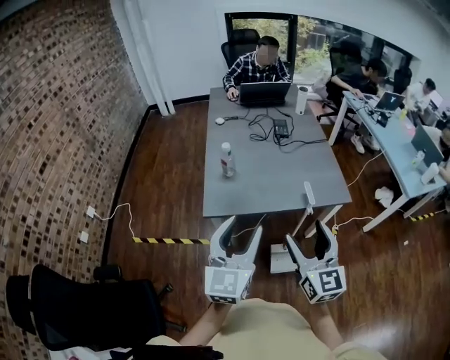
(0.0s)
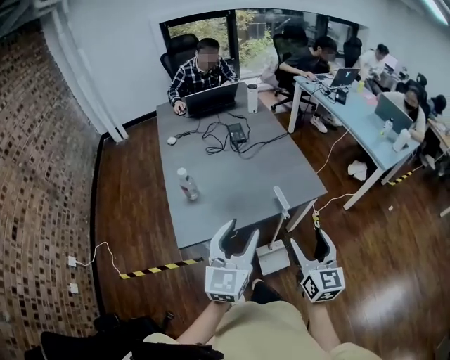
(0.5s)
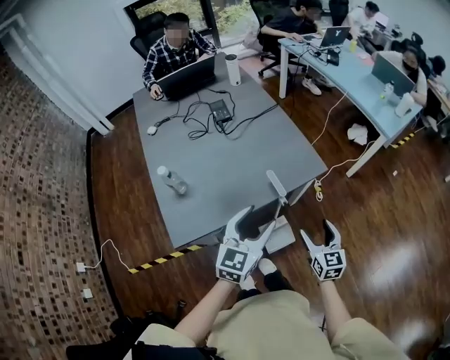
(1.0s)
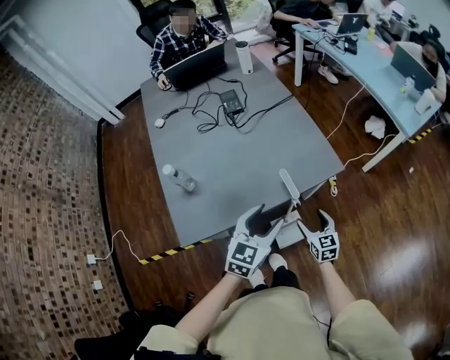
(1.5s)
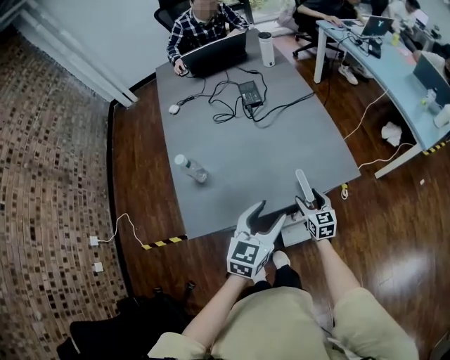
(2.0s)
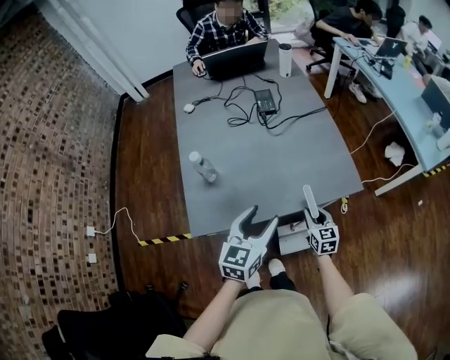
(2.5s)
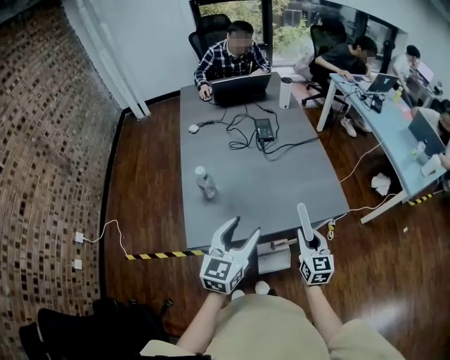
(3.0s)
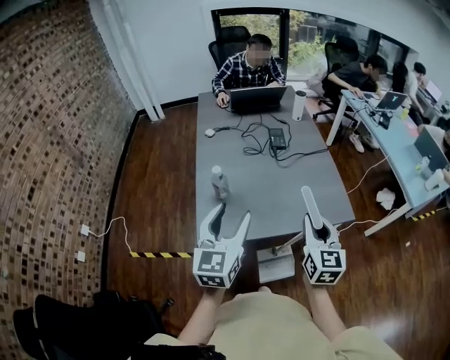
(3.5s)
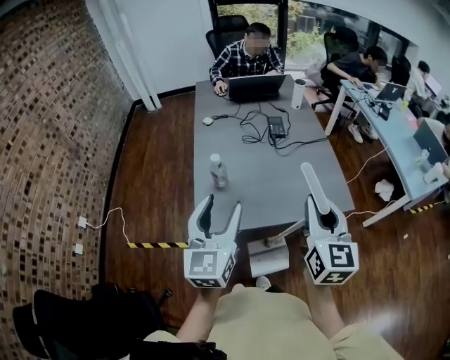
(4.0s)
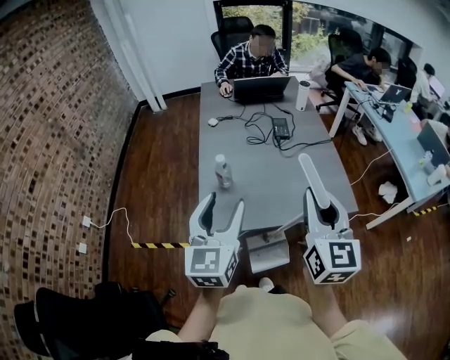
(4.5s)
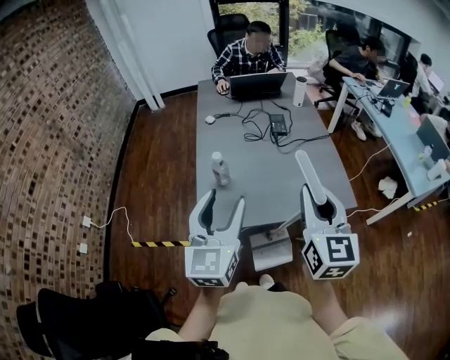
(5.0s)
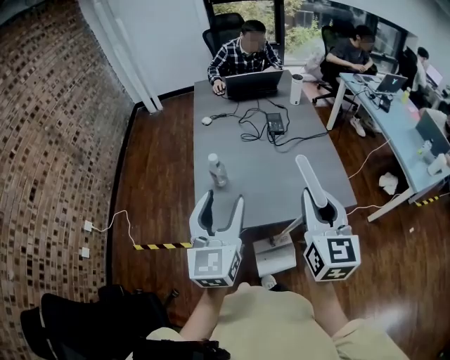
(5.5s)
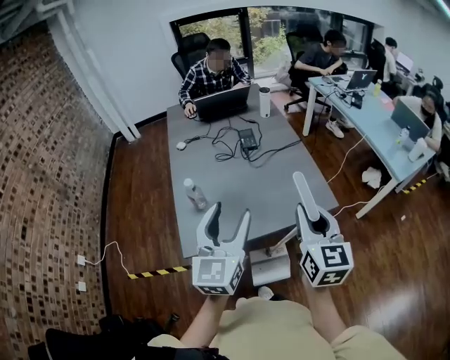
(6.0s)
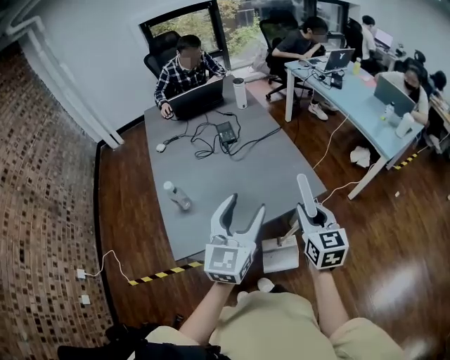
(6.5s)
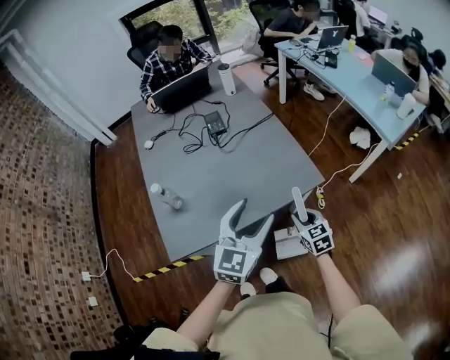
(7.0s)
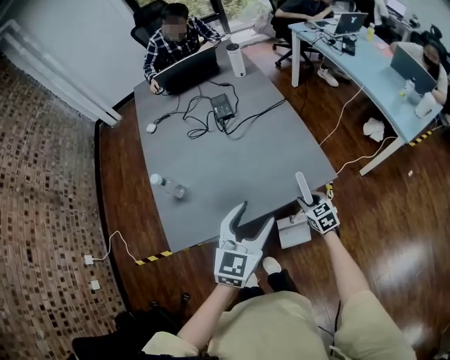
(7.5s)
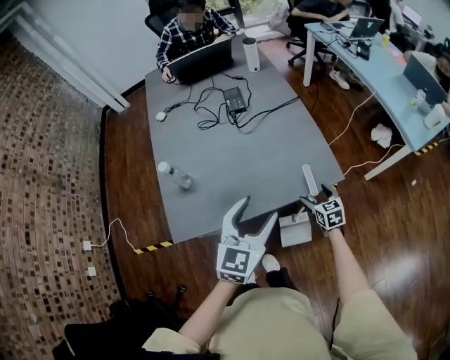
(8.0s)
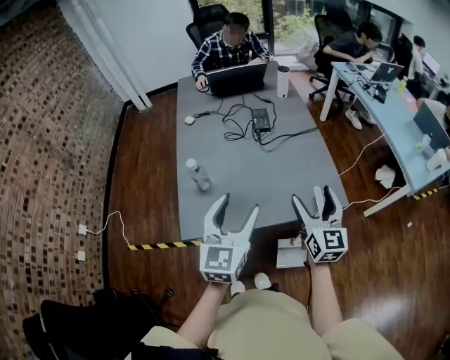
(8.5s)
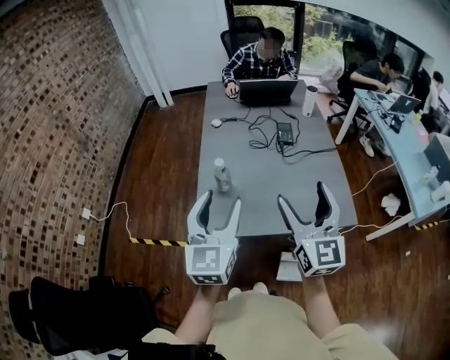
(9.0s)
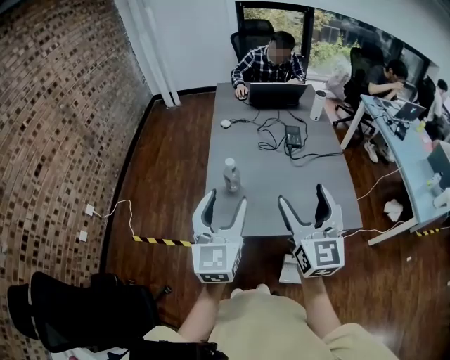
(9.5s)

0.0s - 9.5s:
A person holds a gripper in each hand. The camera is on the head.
0.0s - 2.0s: The left gripper ends up approximately 30 cm from where it was, and swivels about 30 degrees. Meanwhile the right gripper travels downward by approximately 35 cm, and swivels some 30 degrees.
2.0s - 4.0s: The left gripper moves to the left and upward, some 25 cm, and turns by some 40 degrees, while the right gripper is displaced upward by some 40 cm, changes its angle by approximately 20 degrees, and closes.
4.0s - 5.5s: The grippers make only small movements.
5.5s - 7.5s: The left gripper heads to the right and downward, covering some 25 cm, and rotates about 40 degrees. Meanwhile the right gripper goes some 50 cm downward and to the right, and tips its fingers downward by about 40 degrees.
7.5s - 9.5s: The right gripper travels upward and to the left by approximately 50 cm, tilts its fingers roughly 50 degrees upward, and opens; the left gripper is displaced to the left and upward by approximately 30 cm, and changes its angle by some 40 degrees.

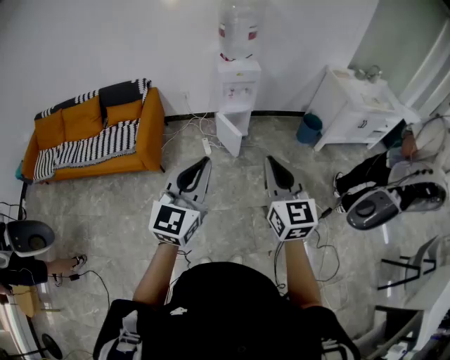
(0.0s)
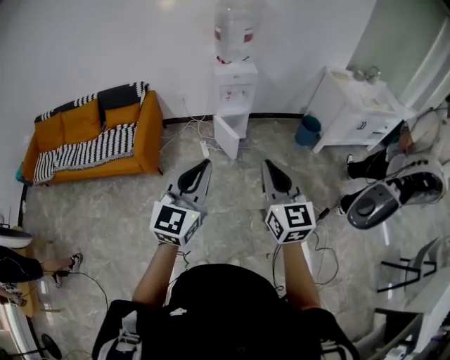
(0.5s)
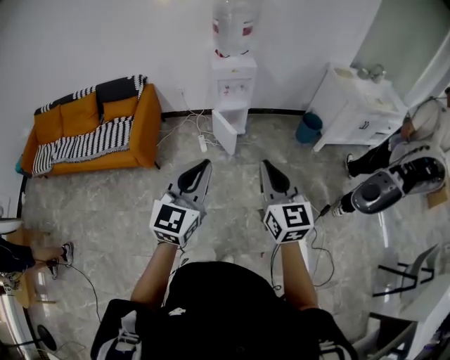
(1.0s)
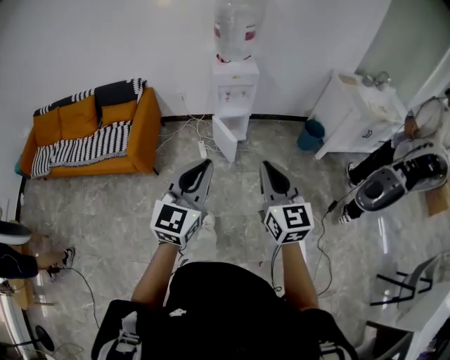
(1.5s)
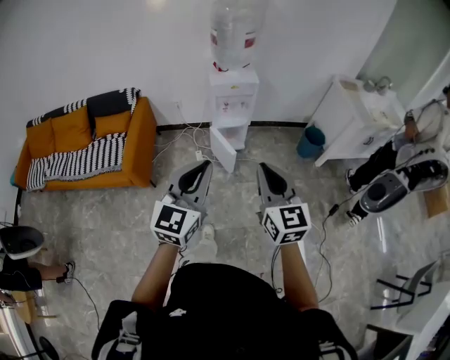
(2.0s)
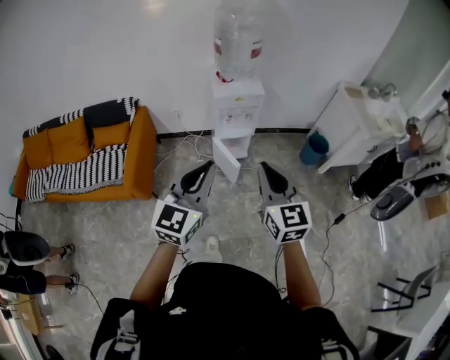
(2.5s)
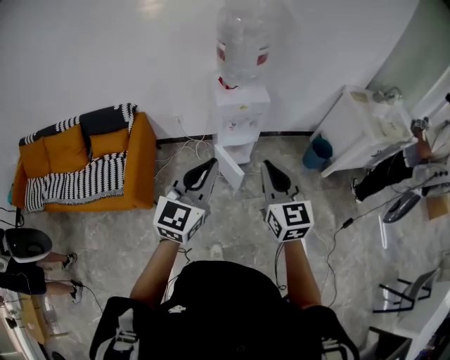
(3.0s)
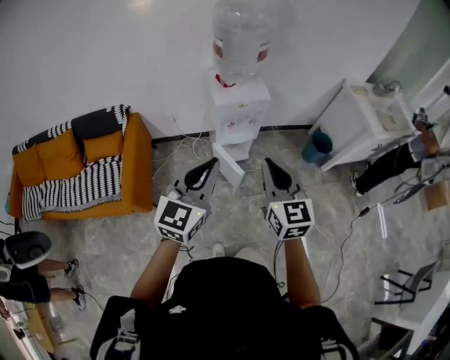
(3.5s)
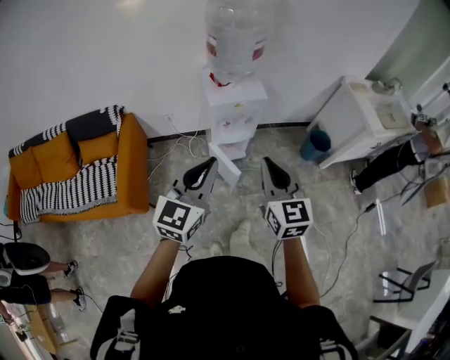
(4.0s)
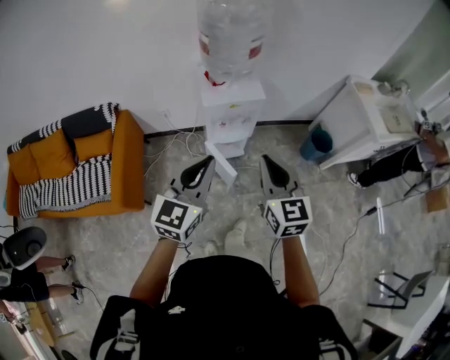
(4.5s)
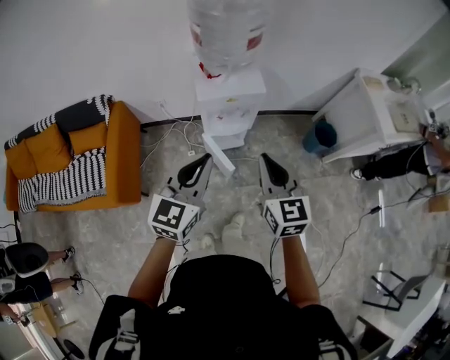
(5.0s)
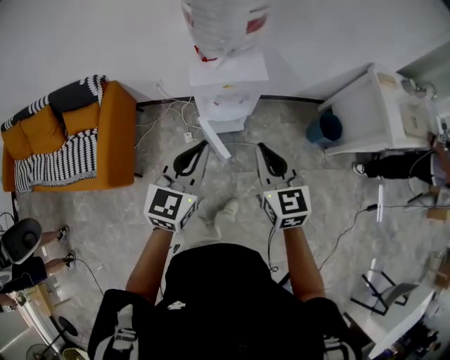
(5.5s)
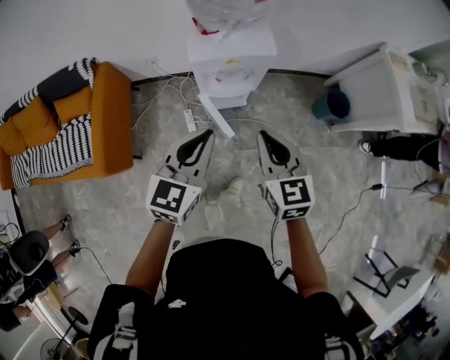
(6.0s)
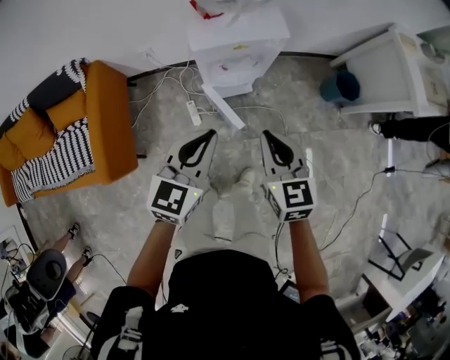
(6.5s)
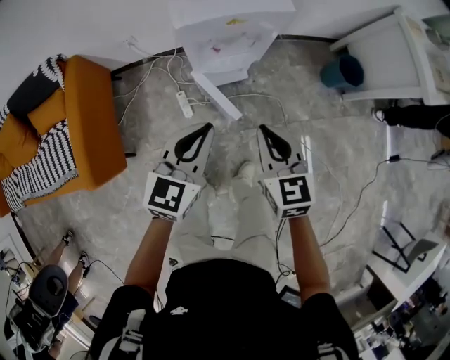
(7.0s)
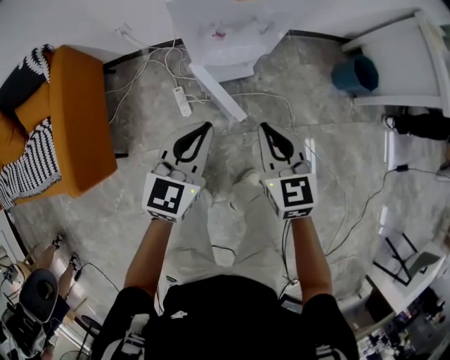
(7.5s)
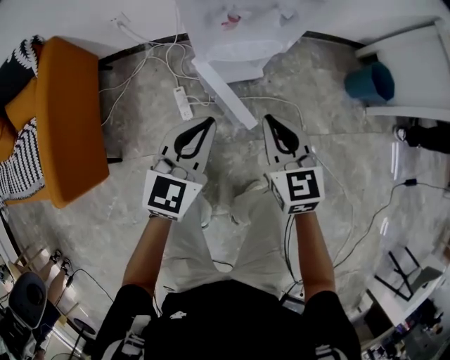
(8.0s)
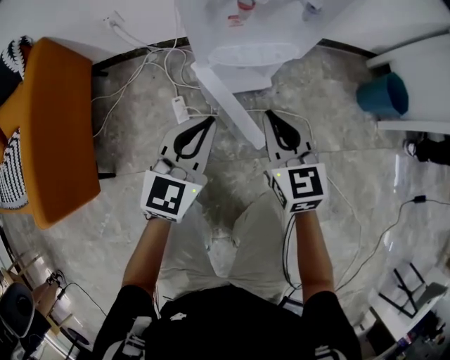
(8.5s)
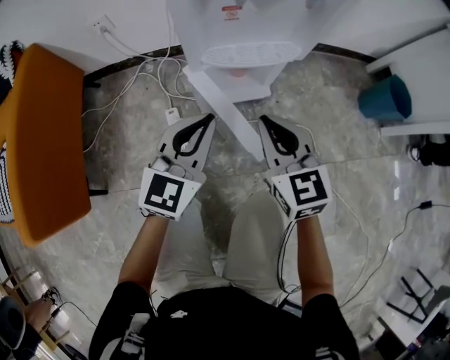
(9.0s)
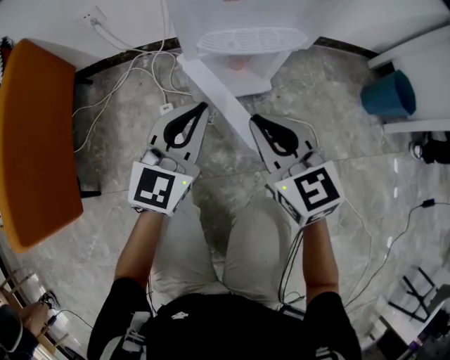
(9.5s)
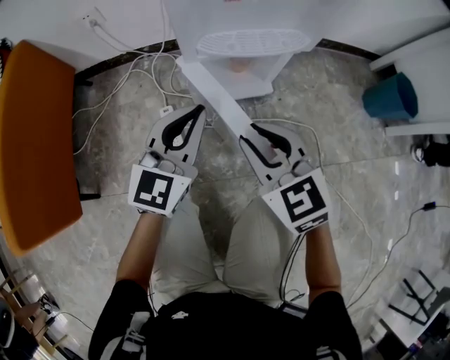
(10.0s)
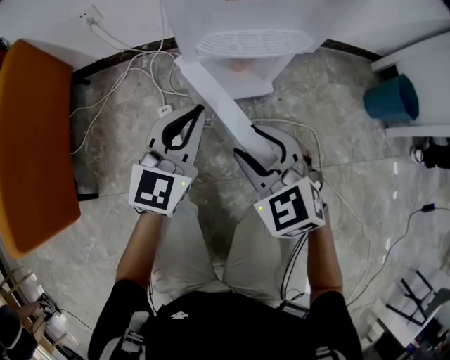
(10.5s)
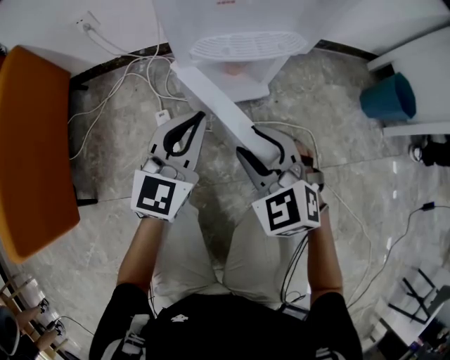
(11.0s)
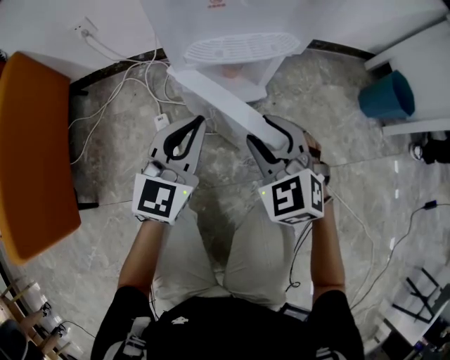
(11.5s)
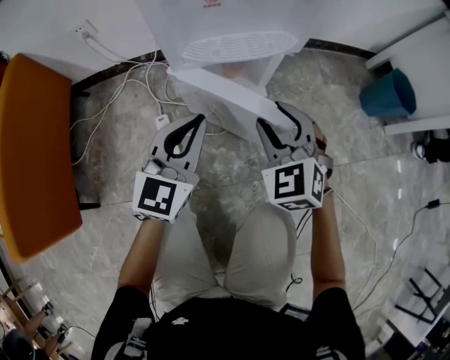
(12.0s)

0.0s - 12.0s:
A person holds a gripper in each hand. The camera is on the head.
0.0s - 2.0s: The two grippers go roughly 20 cm forward.
2.0s - 4.0s: The two grippers go roughly 25 cm forward.
4.0s - 6.0s: The grippers both shift forward and downward by about 20 cm.
6.0s - 8.0s: The two grippers go roughly 35 cm downward.
8.0s - 10.0s: The left gripper shifts some 20 cm downward and forward. Meanwhile the right gripper shifts some 15 cm downward, and rotates some 20 degrees.
10.0s - 12.0s: The right gripper travels to the right and forward by roughly 10 cm, rotates roughly 30 degrees, and opens up.

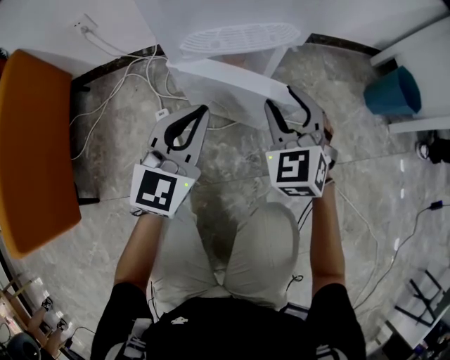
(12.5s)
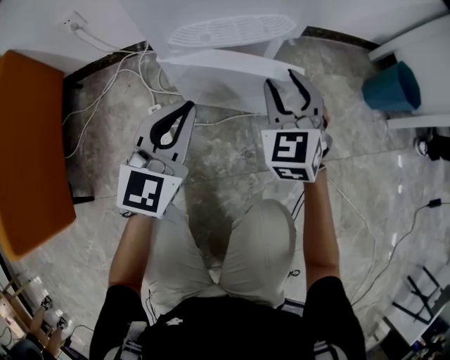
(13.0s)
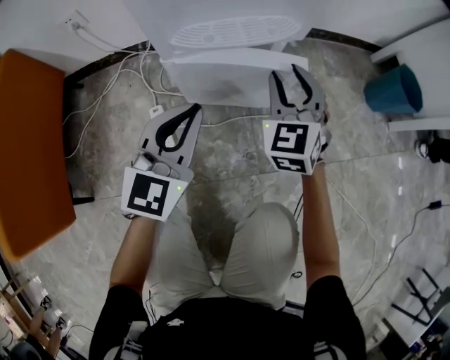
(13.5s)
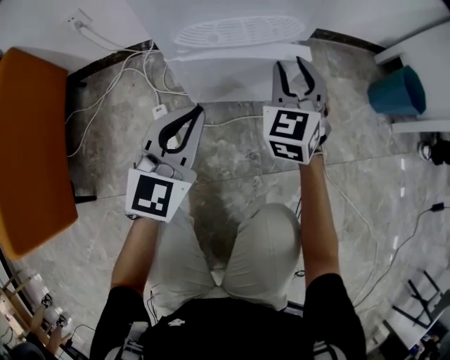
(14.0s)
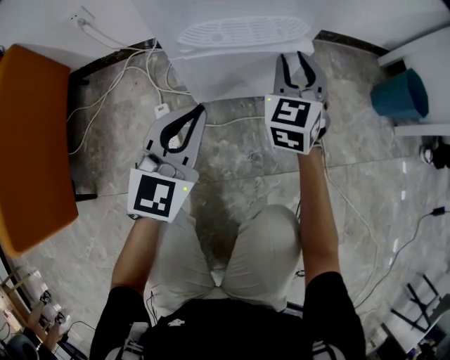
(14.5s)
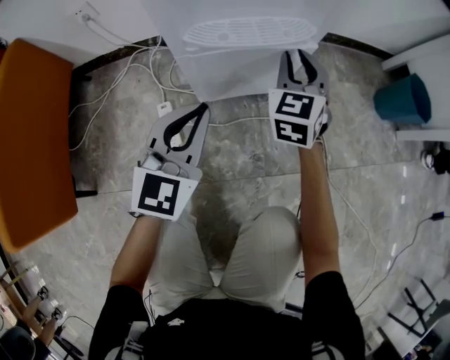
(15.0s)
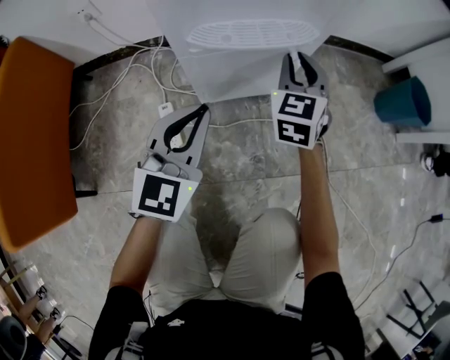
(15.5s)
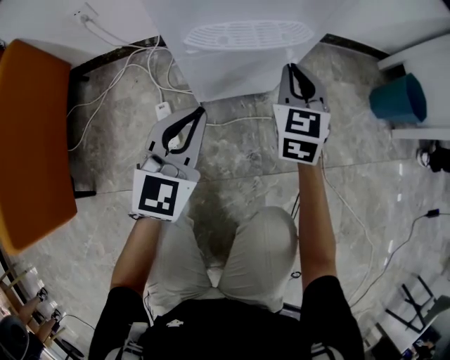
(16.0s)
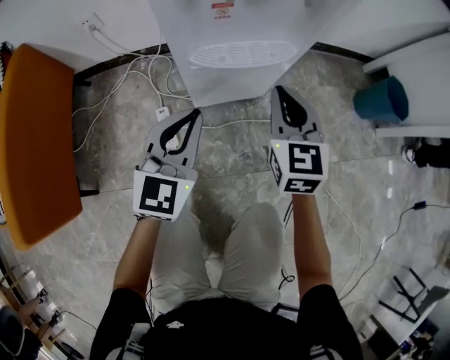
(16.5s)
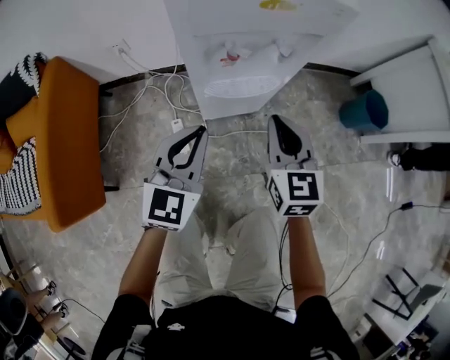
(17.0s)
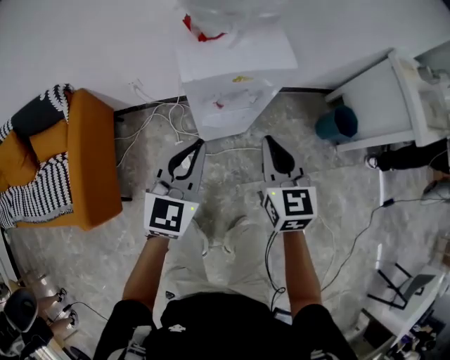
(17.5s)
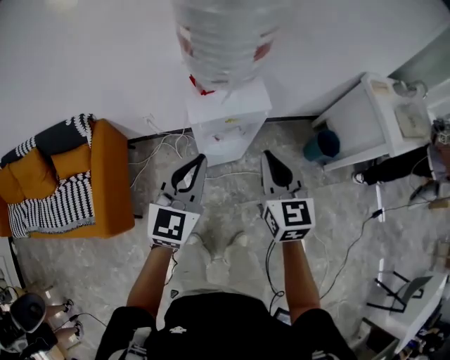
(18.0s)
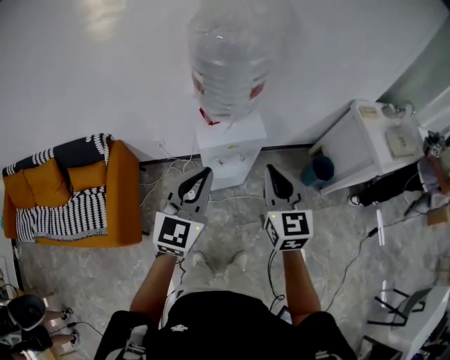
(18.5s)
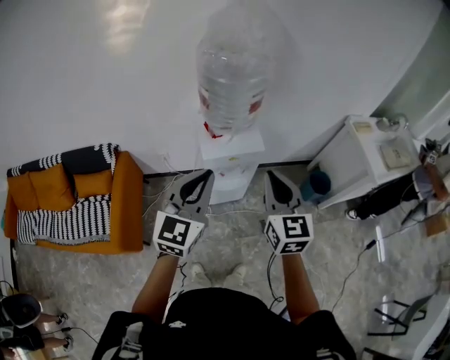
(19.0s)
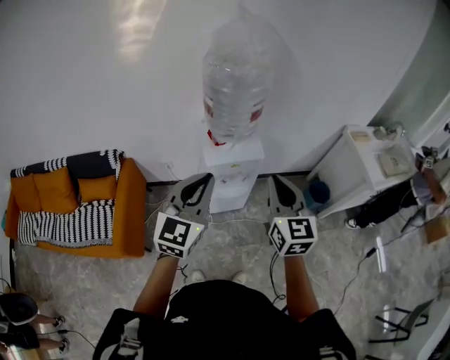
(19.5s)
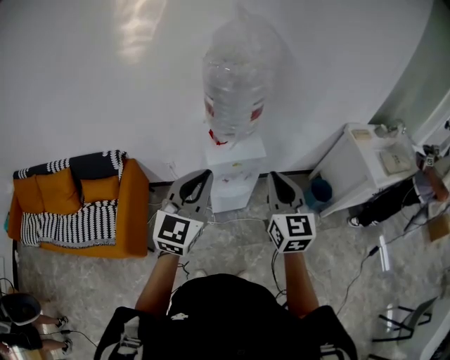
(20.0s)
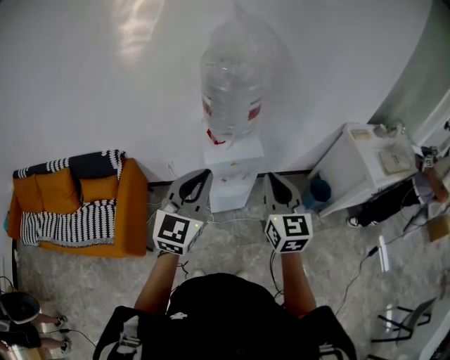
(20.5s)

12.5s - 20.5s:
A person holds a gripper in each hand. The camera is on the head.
12.5s - 14.5s: The right gripper is displaced forward by approximately 10 cm, and rotates about 20 degrees.
14.5s - 16.5s: The left gripper goes approximately 5 cm upward. Meanwhile the right gripper is displaced upward and backward by roughly 10 cm, and closes up.
16.5s - 18.5s: The grippers both shift upward by about 70 cm.
18.5s - 20.5s: Both grippers move upward and backward, some 10 cm.
